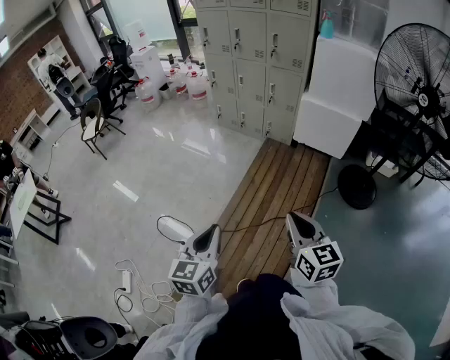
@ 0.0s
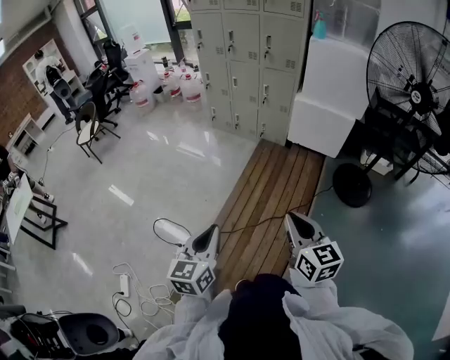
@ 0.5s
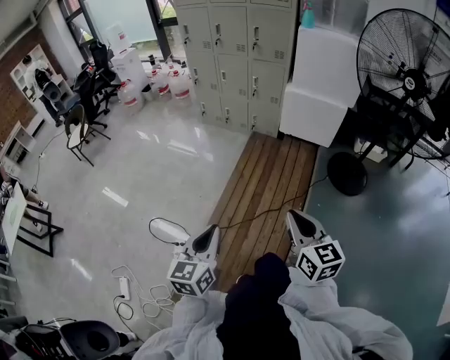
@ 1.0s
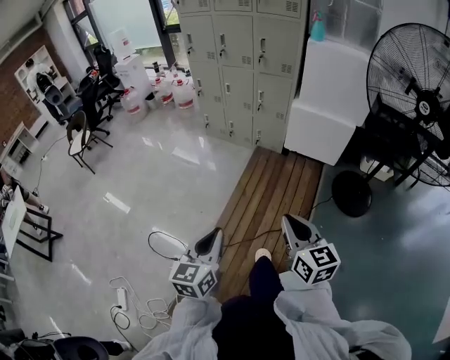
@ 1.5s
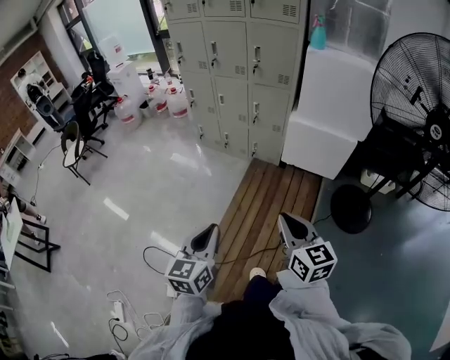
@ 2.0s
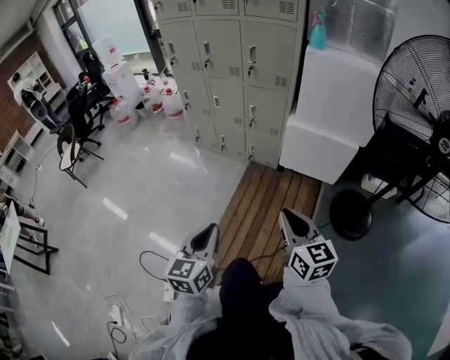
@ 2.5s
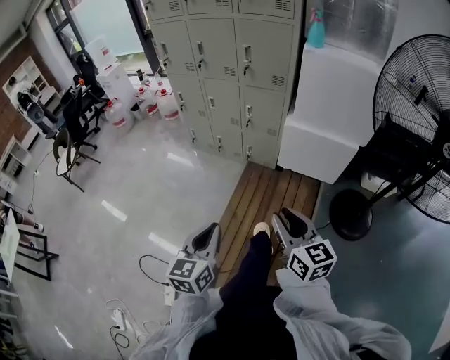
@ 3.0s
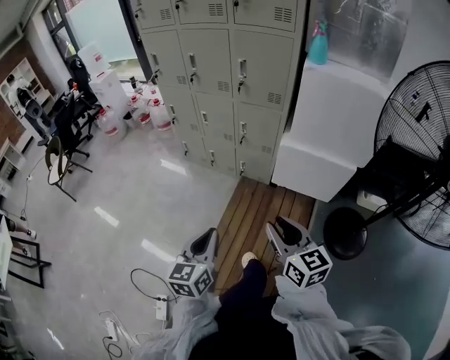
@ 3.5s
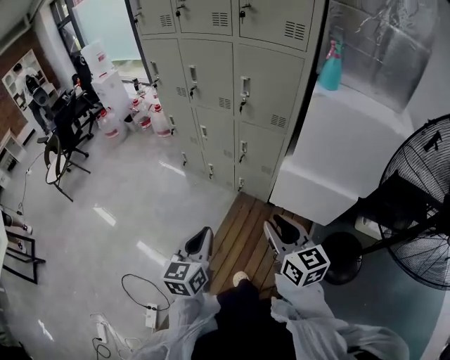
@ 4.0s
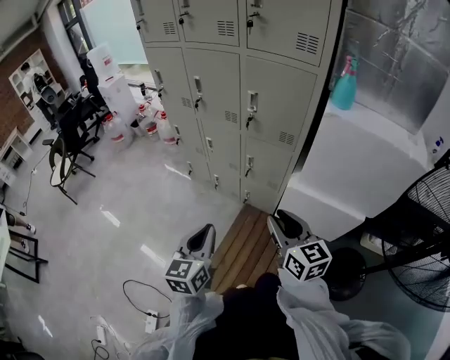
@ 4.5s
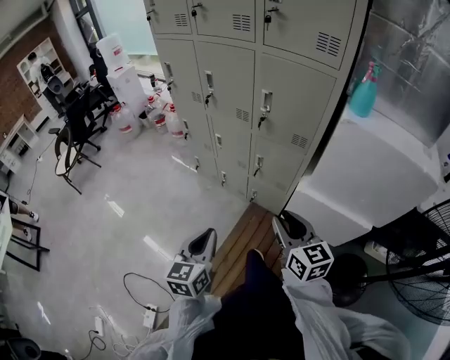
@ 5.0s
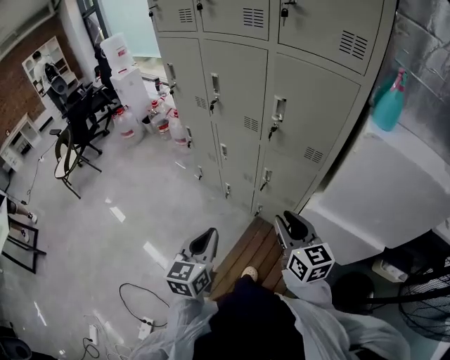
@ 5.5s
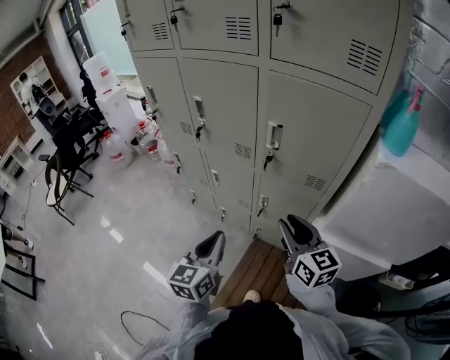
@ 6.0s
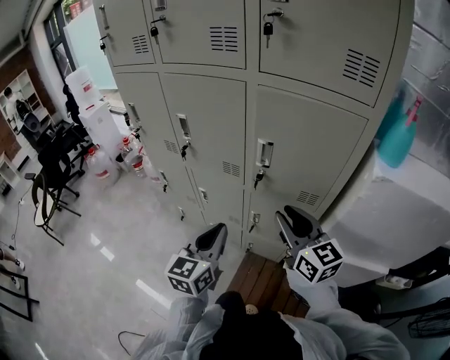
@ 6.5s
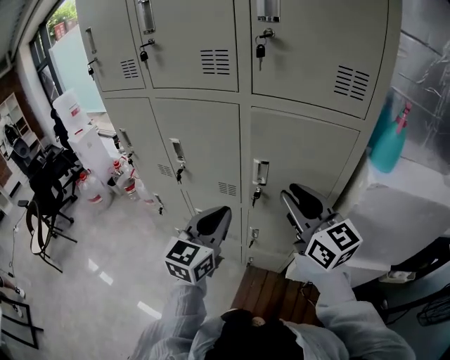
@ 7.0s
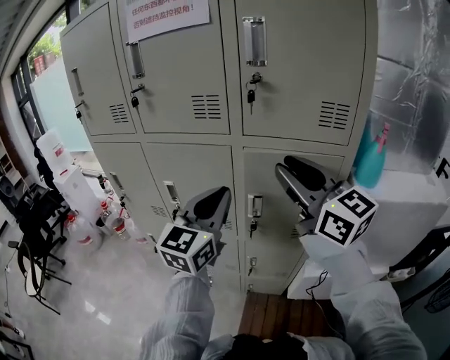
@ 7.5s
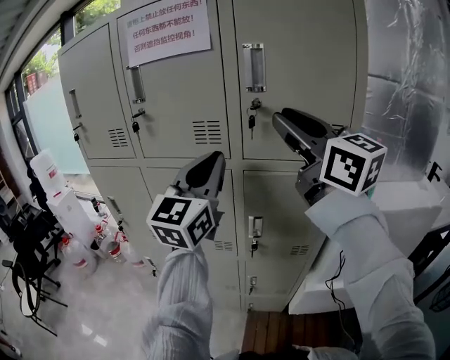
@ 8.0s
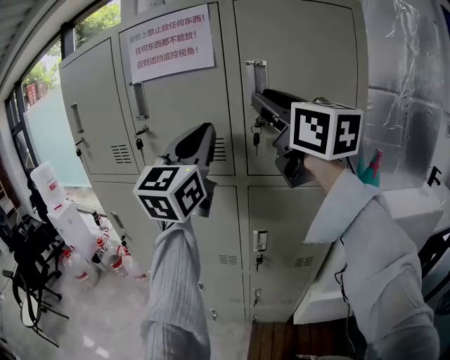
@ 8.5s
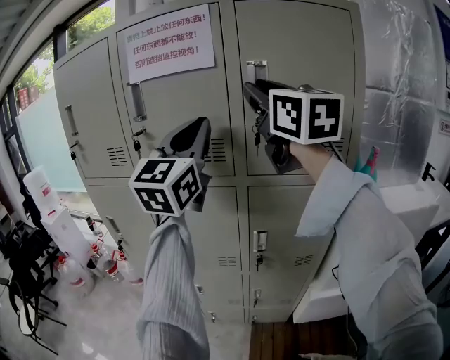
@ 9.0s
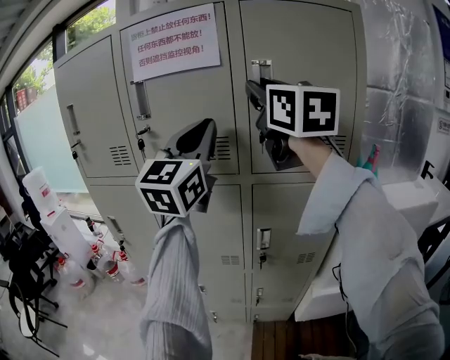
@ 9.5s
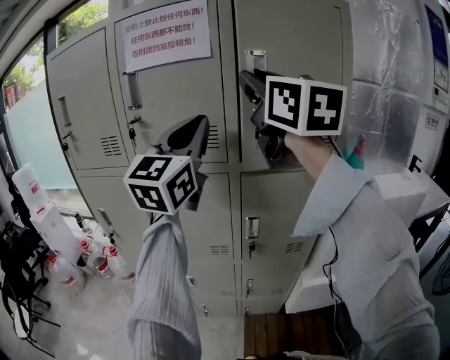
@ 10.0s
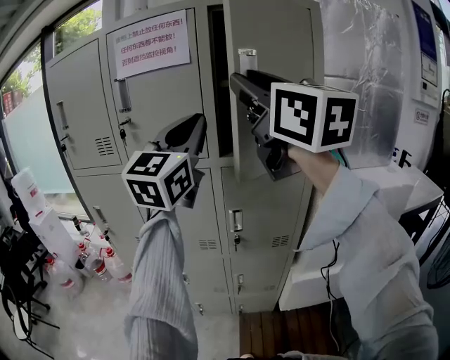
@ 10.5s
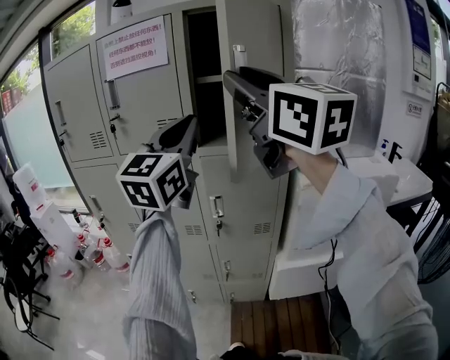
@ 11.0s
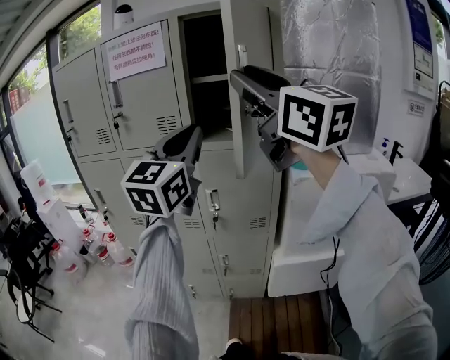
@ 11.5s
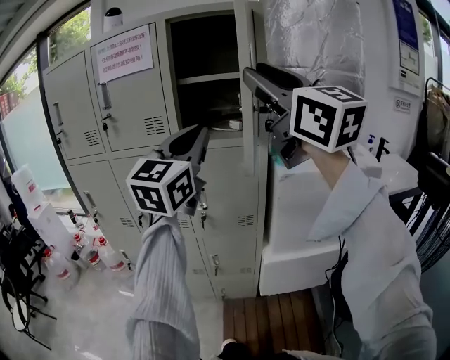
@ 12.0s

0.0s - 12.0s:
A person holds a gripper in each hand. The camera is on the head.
0.0s - 2.0s: Both grippers travel together forward, approximately 25 cm.
2.0s - 4.0s: The grippers both shift forward by some 35 cm. The right gripper opens its fingers.
4.0s - 6.0s: Both grippers move forward, some 35 cm.
6.0s - 8.0s: The left gripper moves upward and forward, approximately 50 cm, and rotates roughly 40 degrees. Meanwhile the right gripper travels upward by about 40 cm, and turns by about 30 degrees.
8.0s - 10.0s: The right gripper moves upward and to the left, some 10 cm, and changes its angle by roughly 20 degrees. Meanwhile the left gripper goes about 10 cm upward.
10.0s - 12.0s: The left gripper travels to the right and backward by some 20 cm, while the right gripper heads backward and to the right, covering roughly 25 cm.

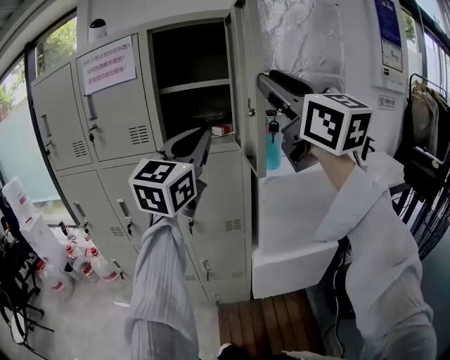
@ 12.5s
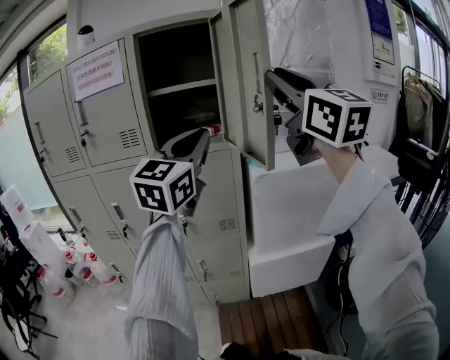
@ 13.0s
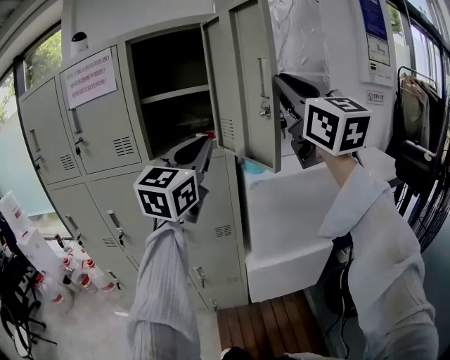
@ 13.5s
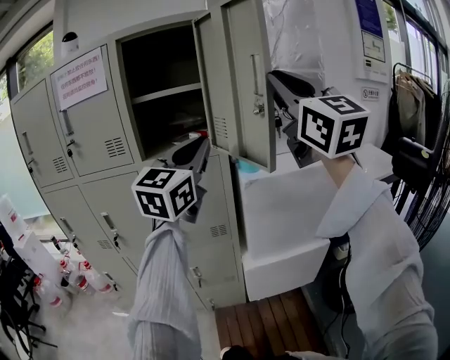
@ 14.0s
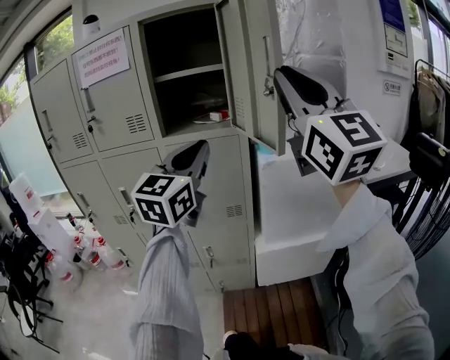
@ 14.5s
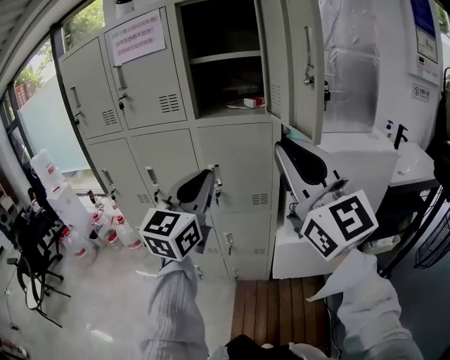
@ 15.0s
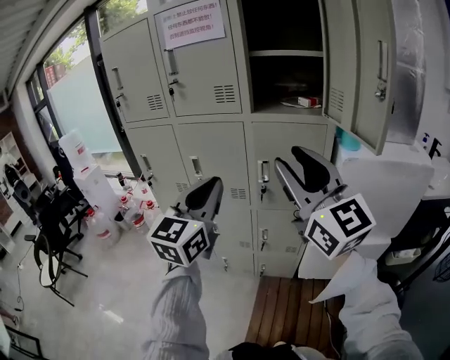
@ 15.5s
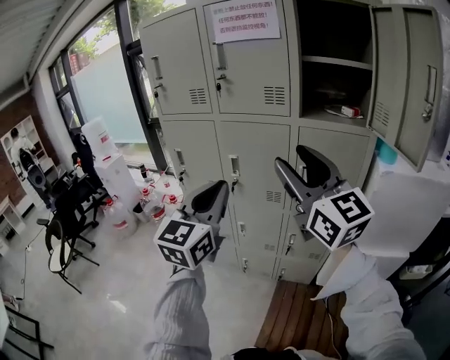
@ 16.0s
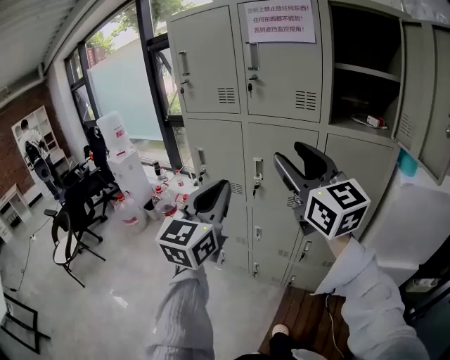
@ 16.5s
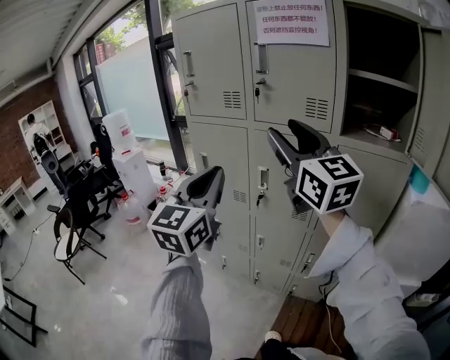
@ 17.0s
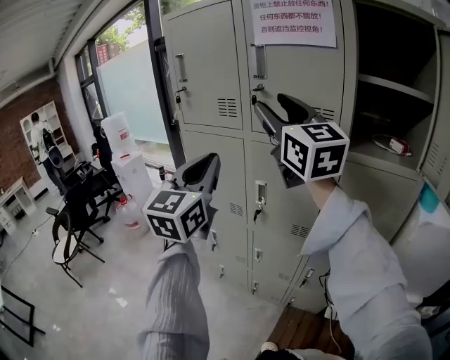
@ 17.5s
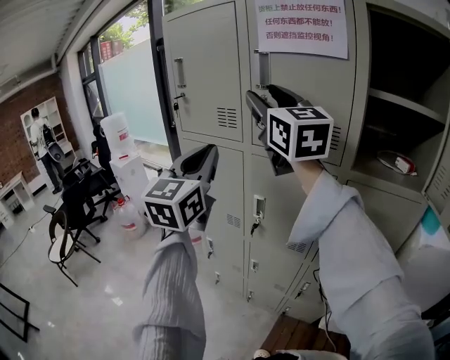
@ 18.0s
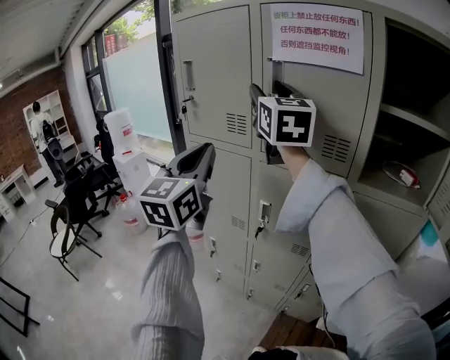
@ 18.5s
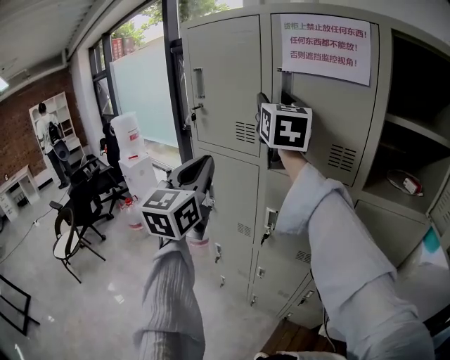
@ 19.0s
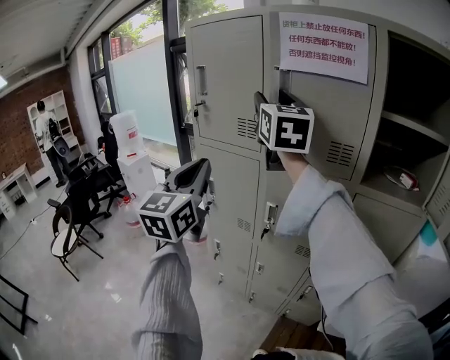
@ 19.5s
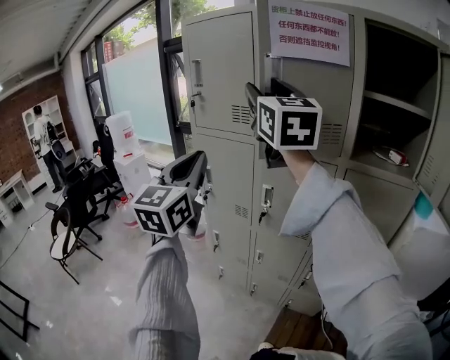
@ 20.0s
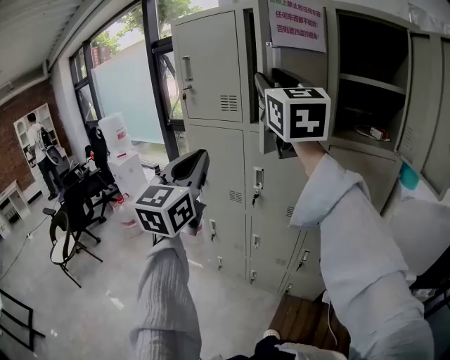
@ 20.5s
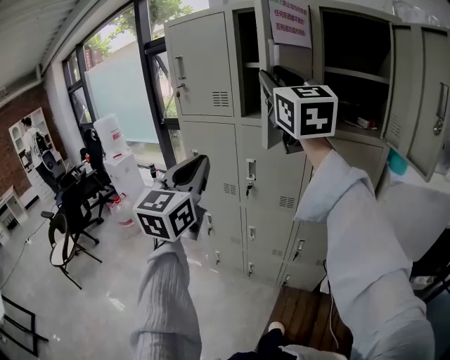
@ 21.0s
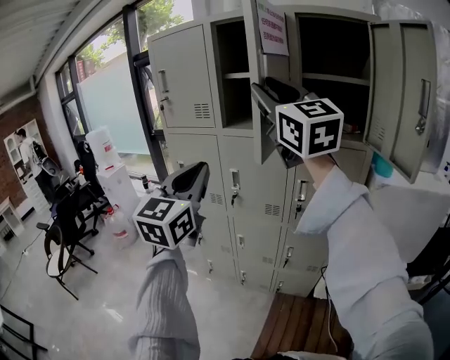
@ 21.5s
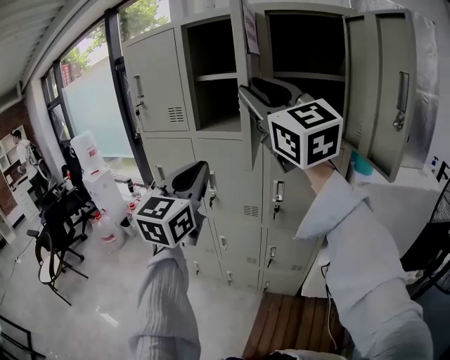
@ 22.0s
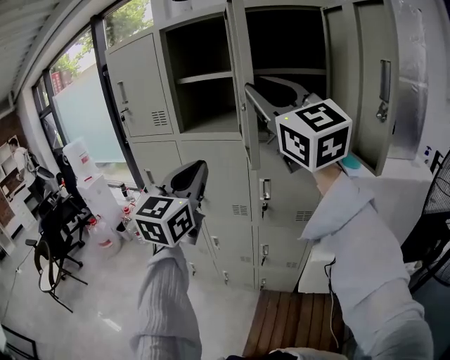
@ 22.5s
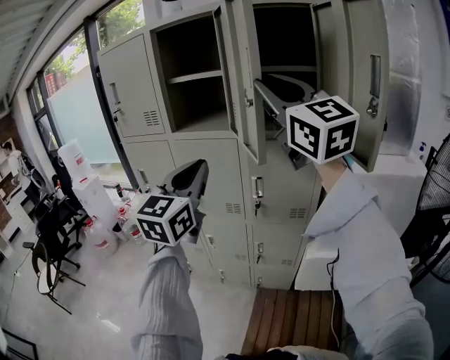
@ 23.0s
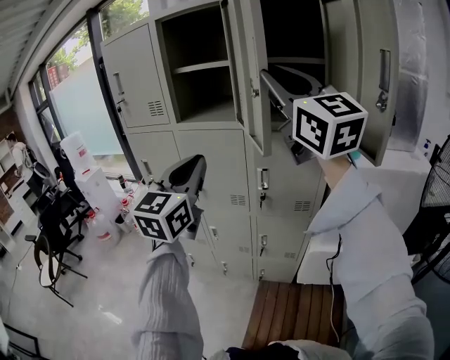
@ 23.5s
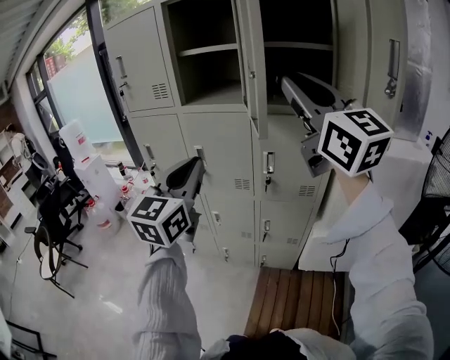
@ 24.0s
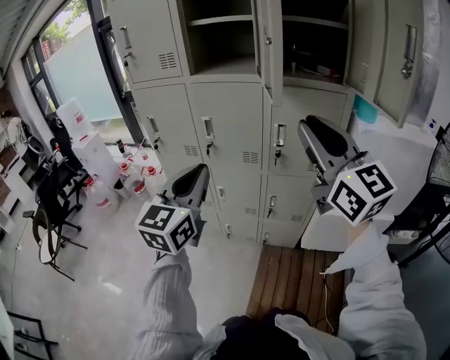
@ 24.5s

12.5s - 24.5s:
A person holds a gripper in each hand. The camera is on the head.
12.5s - 14.5s: The left gripper shifts about 5 cm downward; the right gripper shifts by about 5 cm, and closes up.
14.5s - 16.5s: The two grippers travel together, about 40 cm. The left gripper rotates roughly 30 degrees, while the right gripper rotates roughly 40 degrees, and opens its fingers.
16.5s - 18.5s: Both grippers move forward and upward, approximately 30 cm.
18.5s - 20.5s: The grippers both shift backward by about 15 cm.
20.5s - 22.5s: The right gripper travels to the right and backward by roughly 20 cm. Meanwhile the left gripper shifts approximately 20 cm to the right.
22.5s - 24.5s: The right gripper moves downward and backward, about 20 cm. The left gripper is displaced downward, to the left and backward by approximately 15 cm.

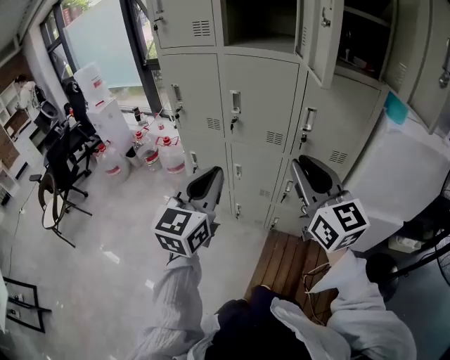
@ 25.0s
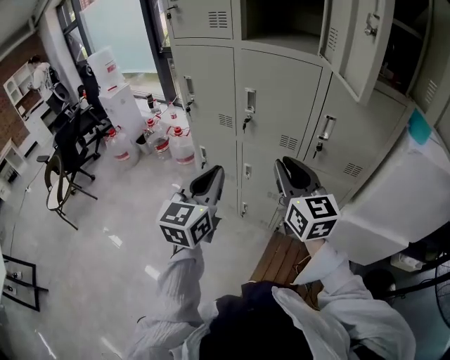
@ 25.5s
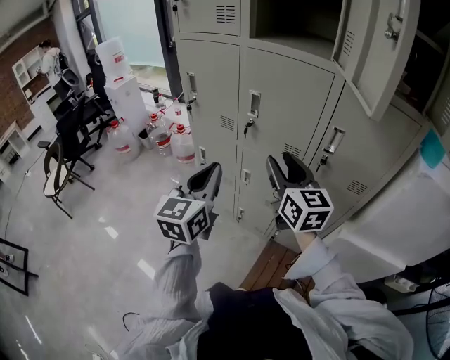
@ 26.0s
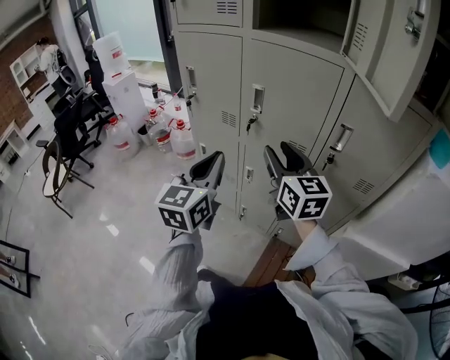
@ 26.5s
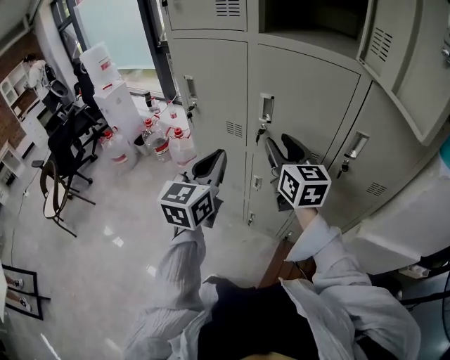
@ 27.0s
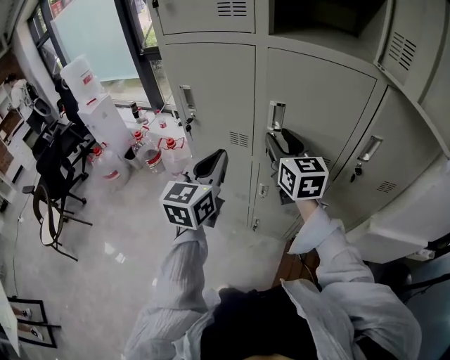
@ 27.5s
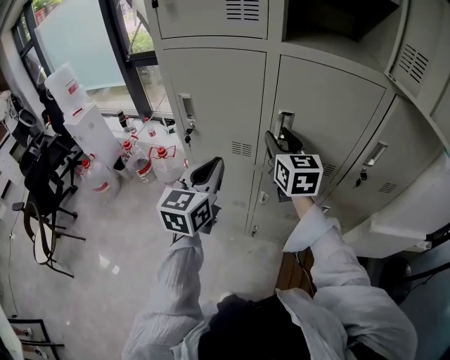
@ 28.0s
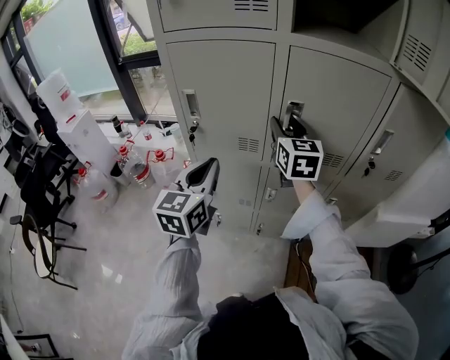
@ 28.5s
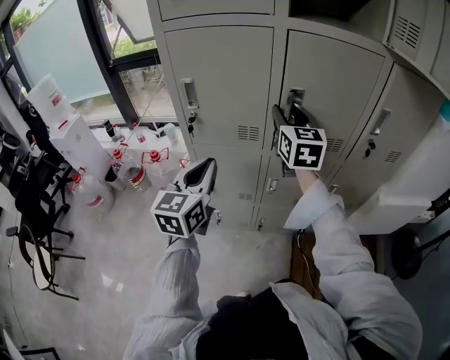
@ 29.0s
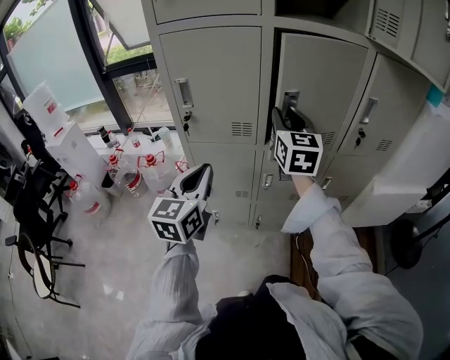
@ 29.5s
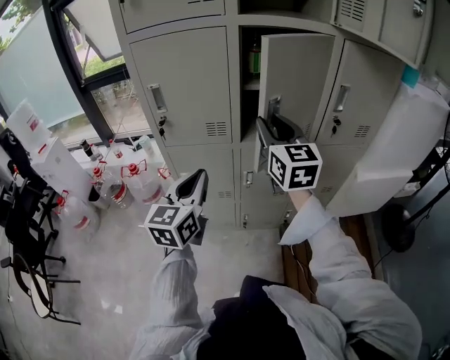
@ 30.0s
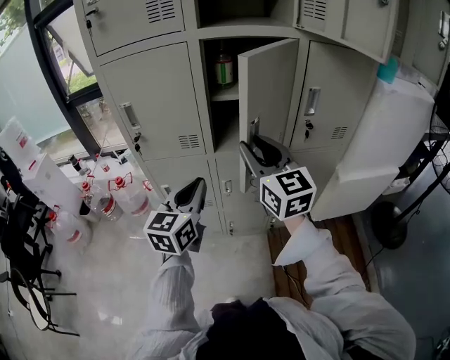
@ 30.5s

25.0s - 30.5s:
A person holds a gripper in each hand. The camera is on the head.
25.0s - 27.0s: The grippers both shift forward by roughly 25 cm. The right gripper opens.
27.0s - 28.5s: The left gripper goes approximately 15 cm to the left and forward. The right gripper moves forward and to the left, about 15 cm, and swivels some 30 degrees.
28.5s - 30.5s: The right gripper goes approximately 20 cm backward and to the right, while the left gripper is displaced to the right and backward by approximately 15 cm.
